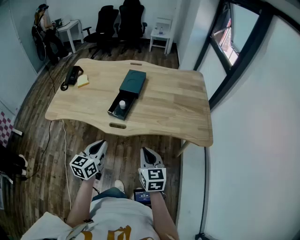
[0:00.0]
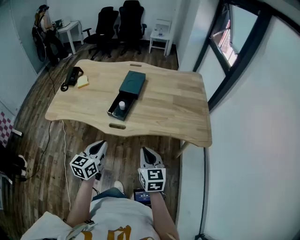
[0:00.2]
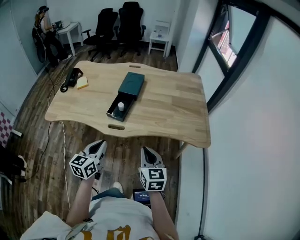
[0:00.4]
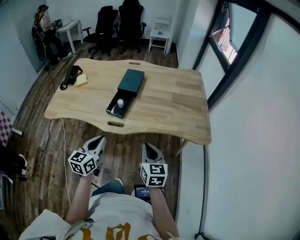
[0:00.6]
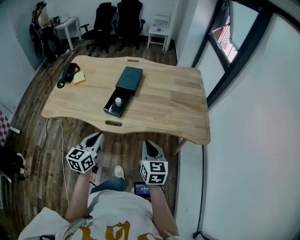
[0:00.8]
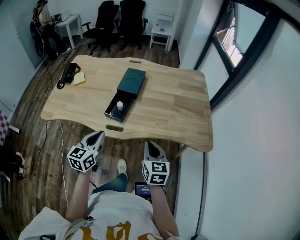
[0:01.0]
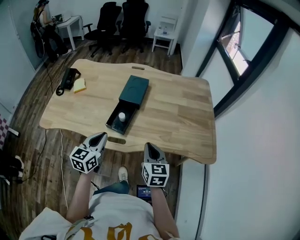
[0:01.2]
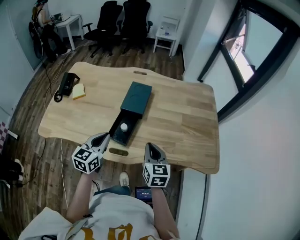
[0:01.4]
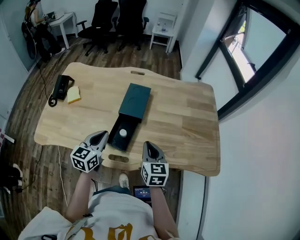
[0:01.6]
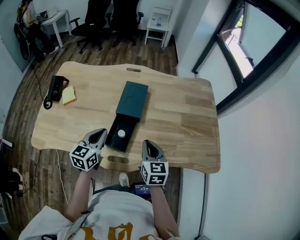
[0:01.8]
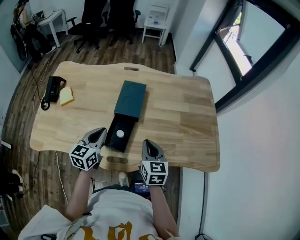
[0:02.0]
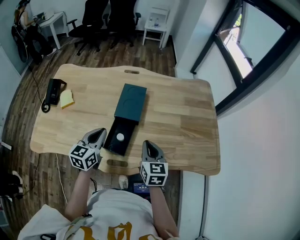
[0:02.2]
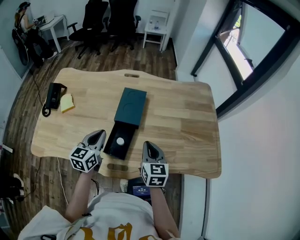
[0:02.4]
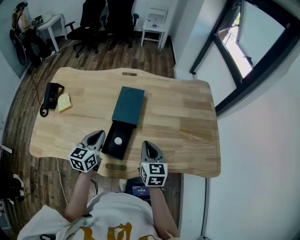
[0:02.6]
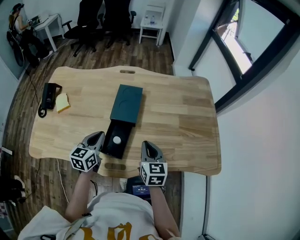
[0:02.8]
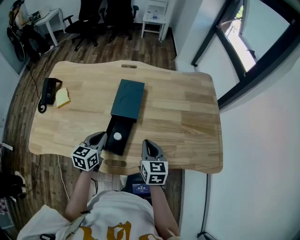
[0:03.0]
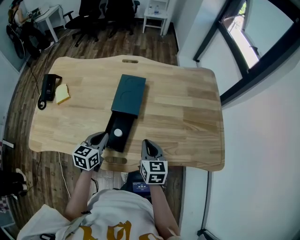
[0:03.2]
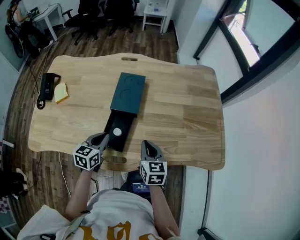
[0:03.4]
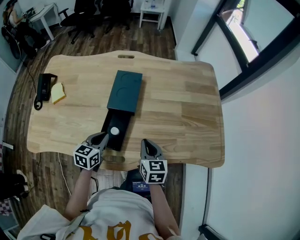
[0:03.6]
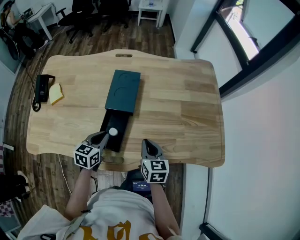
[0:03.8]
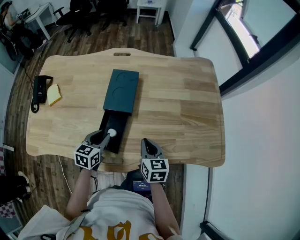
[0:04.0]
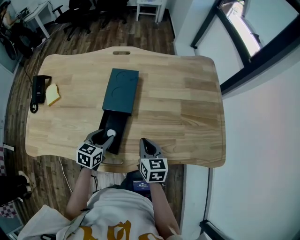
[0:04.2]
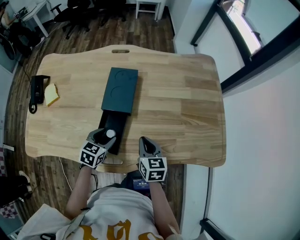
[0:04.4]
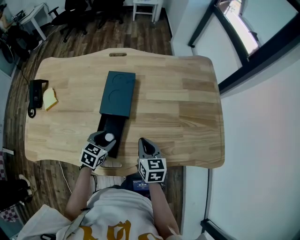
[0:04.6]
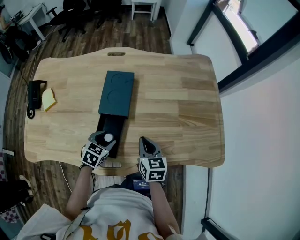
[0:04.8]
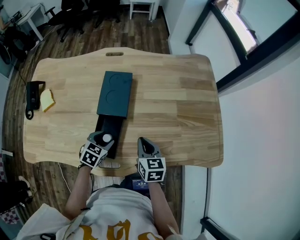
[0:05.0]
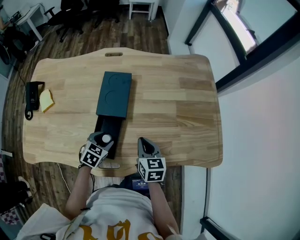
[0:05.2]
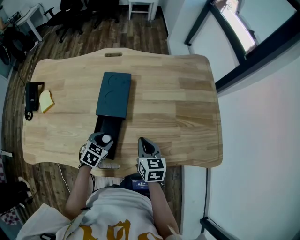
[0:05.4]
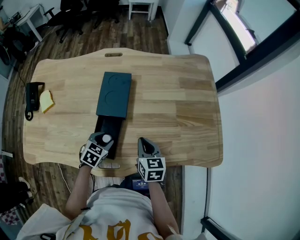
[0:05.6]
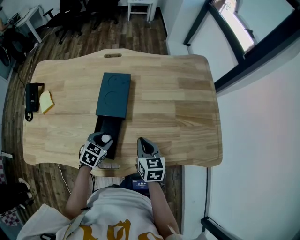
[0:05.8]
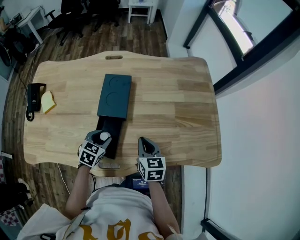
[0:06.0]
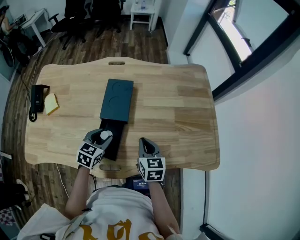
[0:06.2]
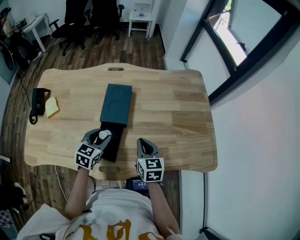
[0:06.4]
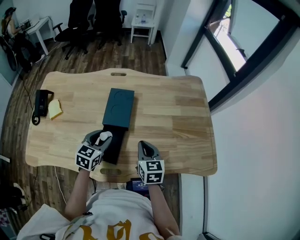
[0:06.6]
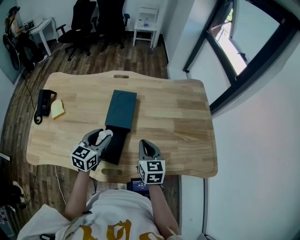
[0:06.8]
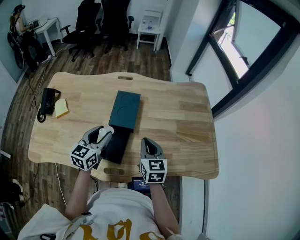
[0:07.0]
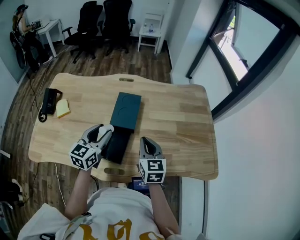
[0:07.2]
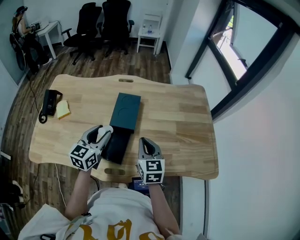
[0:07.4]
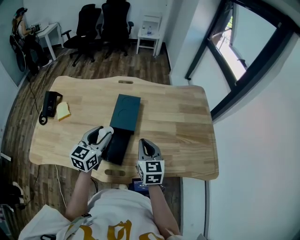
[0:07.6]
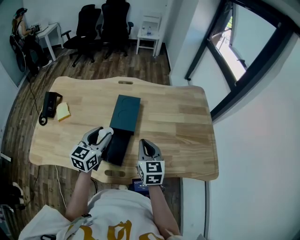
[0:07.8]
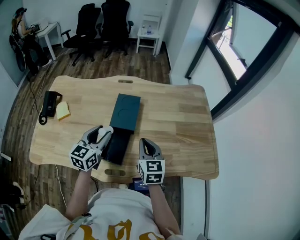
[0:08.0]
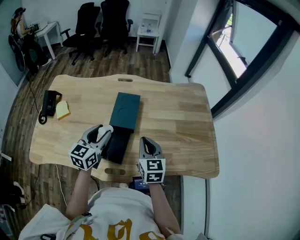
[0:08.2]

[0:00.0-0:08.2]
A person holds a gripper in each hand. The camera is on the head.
0:00.0 to 0:01.6: Both grippers travel together forward, approximately 25 cm.
0:01.6 to 0:03.2: Both grippers move downward, approximately 10 cm.
0:03.2 to 0:05.0: The right gripper ends up about 5 cm from where it was. Meanwhile the left gripper moves downward and to the right, about 10 cm, rotates some 30 degrees, and opens.
0:05.0 to 0:06.6: The left gripper is displaced upward by about 10 cm, and swivels roughly 20 degrees, while the right gripper heads upward, covering approximately 5 cm.
0:06.6 to 0:08.2: The left gripper shifts approximately 10 cm upward; the right gripper goes roughly 5 cm upward.

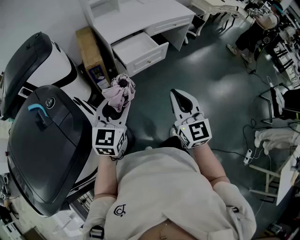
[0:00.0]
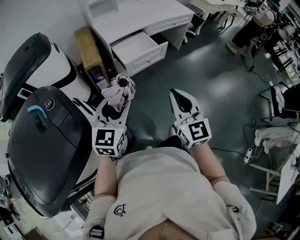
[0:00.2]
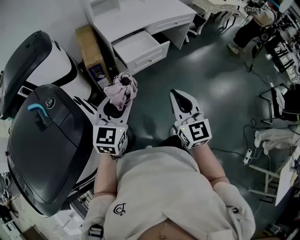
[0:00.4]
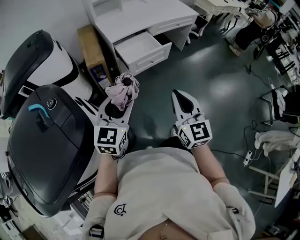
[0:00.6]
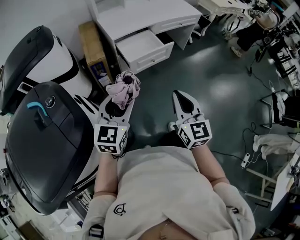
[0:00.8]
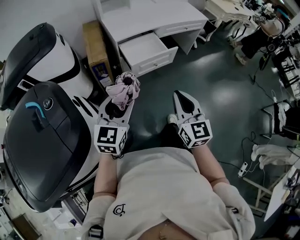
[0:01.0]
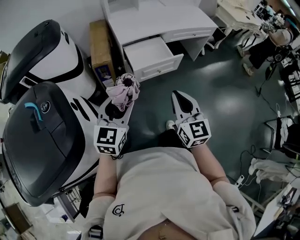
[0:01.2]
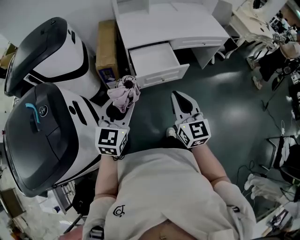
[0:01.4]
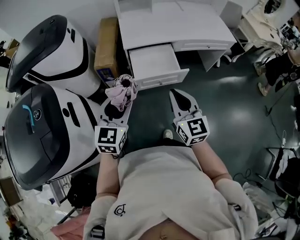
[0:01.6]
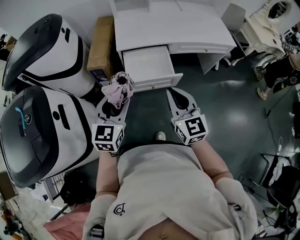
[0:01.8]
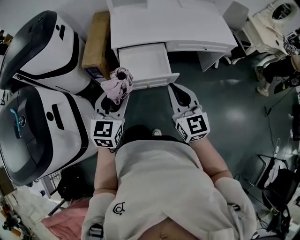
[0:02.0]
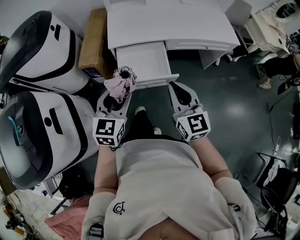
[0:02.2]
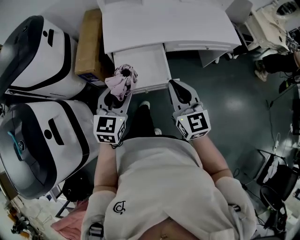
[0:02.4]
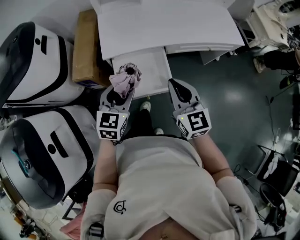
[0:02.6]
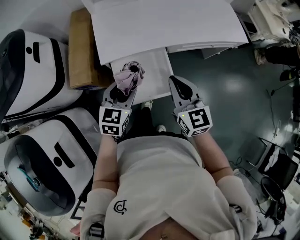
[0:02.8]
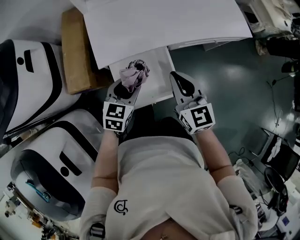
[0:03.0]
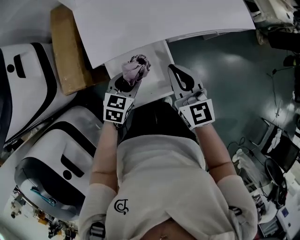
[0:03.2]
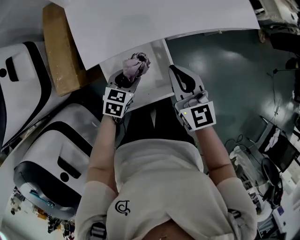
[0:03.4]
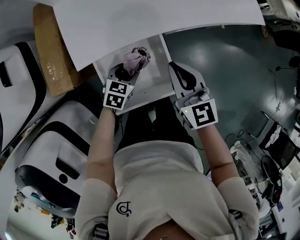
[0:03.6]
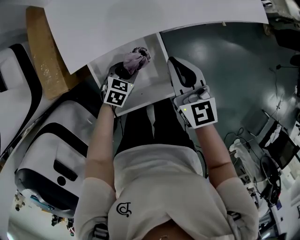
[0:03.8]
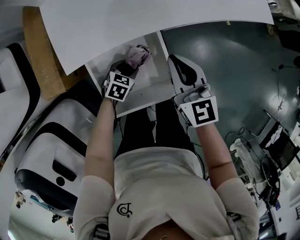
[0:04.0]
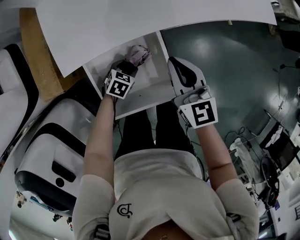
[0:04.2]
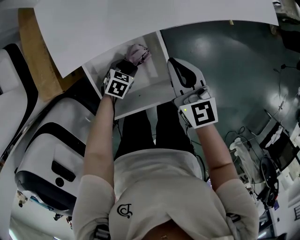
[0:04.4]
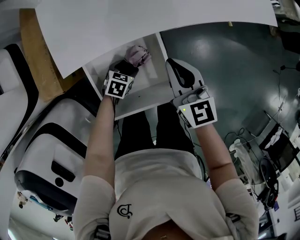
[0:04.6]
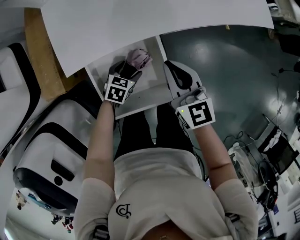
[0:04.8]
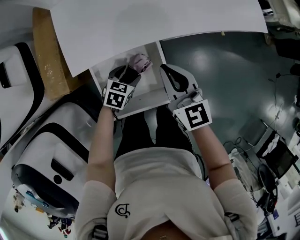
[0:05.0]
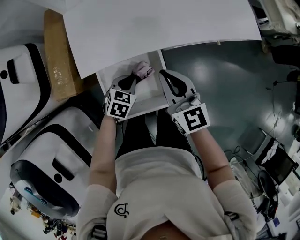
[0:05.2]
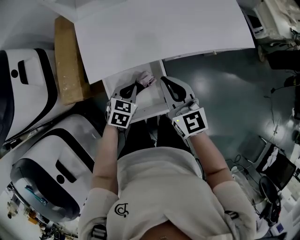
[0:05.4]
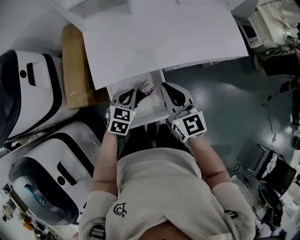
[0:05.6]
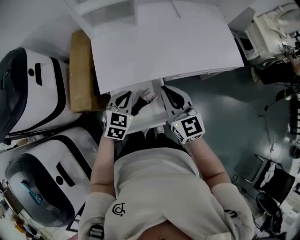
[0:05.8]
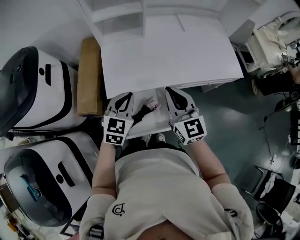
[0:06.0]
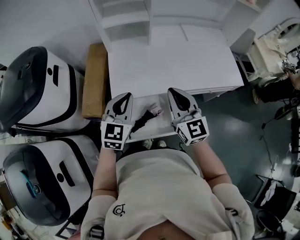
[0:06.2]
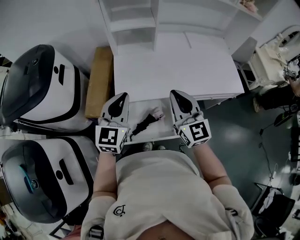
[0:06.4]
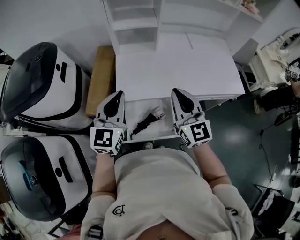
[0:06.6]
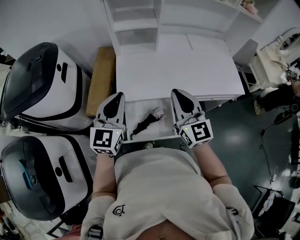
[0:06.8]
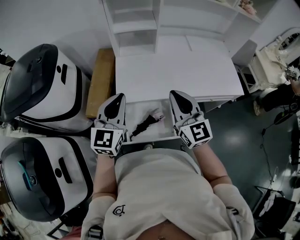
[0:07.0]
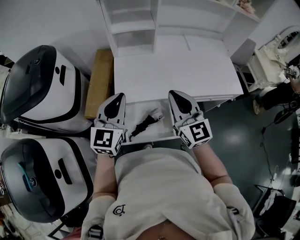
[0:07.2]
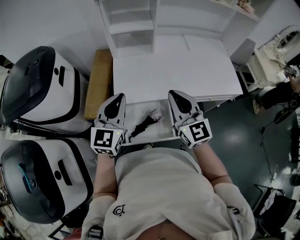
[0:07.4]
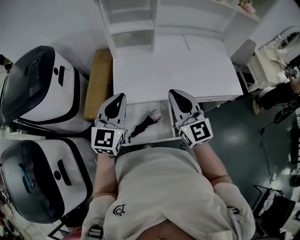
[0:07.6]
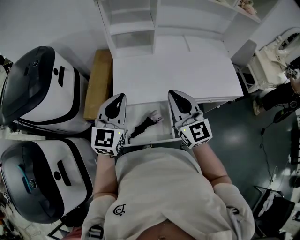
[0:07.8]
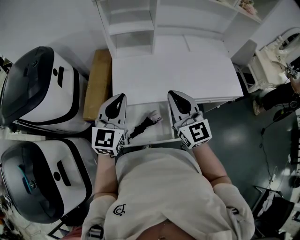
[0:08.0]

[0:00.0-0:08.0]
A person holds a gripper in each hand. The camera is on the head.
0:00.0 to 0:01.6: The two grippers go roughly 20 cm forward. The left gripper swivels about 20 degrees, while the right gripper turns by approximately 20 degrees.
0:01.6 to 0:03.2: The right gripper moves forward, some 30 cm. The left gripper goes roughly 35 cm forward and downward, and rotates roughly 30 degrees.
0:03.2 to 0:04.8: The left gripper moves downward, roughly 20 cm, and opens its fingers; the right gripper goes some 10 cm downward.
0:04.8 to 0:06.4: The left gripper heads upward, covering roughly 50 cm, tilts its fingers roughly 50 degrees upward, and closes up. The right gripper shifts roughly 25 cm upward, and rotates approximately 30 degrees.
0:06.4 to 0:08.0: The grippers stay close to where they were, moving slightly.

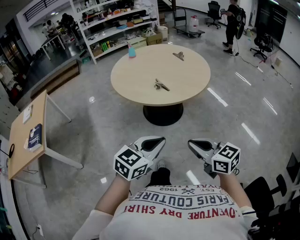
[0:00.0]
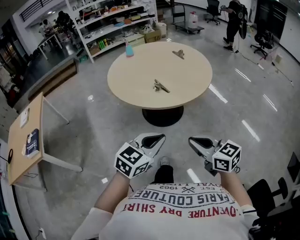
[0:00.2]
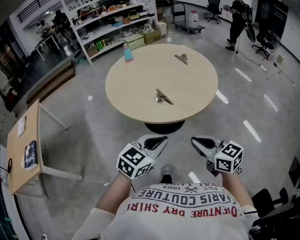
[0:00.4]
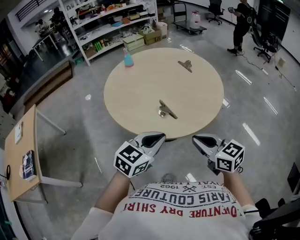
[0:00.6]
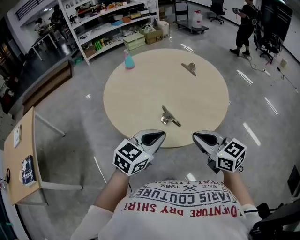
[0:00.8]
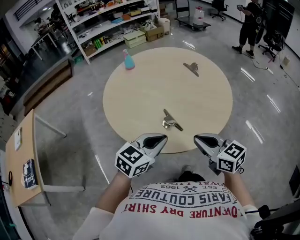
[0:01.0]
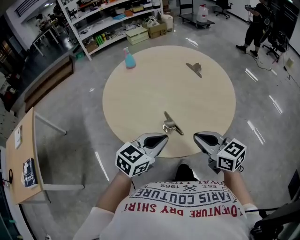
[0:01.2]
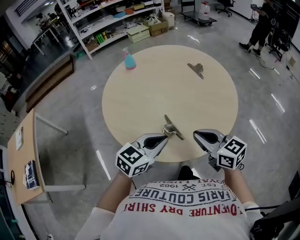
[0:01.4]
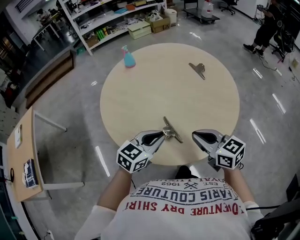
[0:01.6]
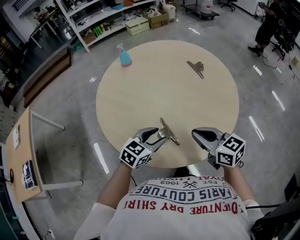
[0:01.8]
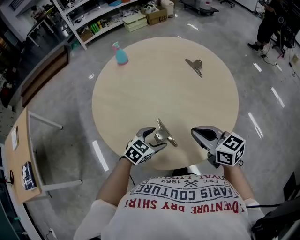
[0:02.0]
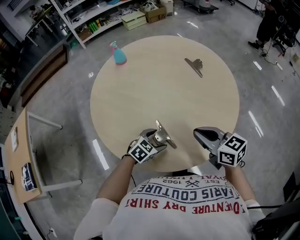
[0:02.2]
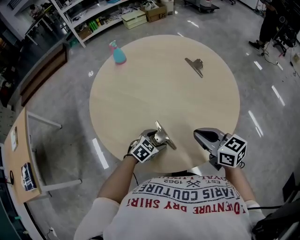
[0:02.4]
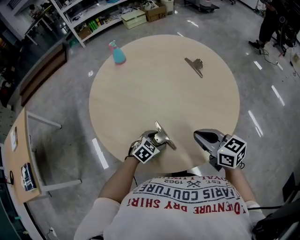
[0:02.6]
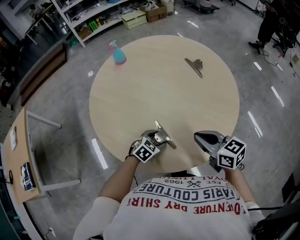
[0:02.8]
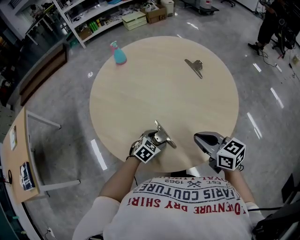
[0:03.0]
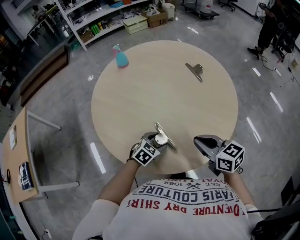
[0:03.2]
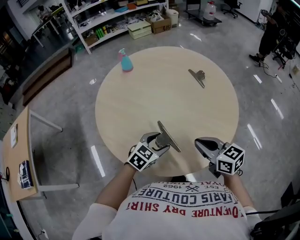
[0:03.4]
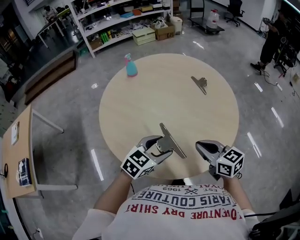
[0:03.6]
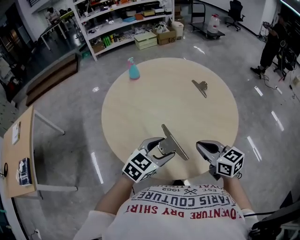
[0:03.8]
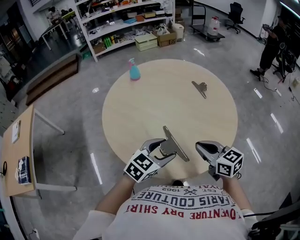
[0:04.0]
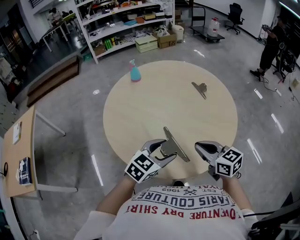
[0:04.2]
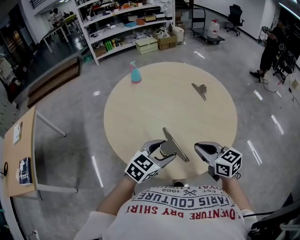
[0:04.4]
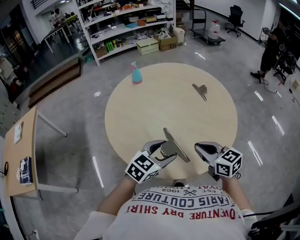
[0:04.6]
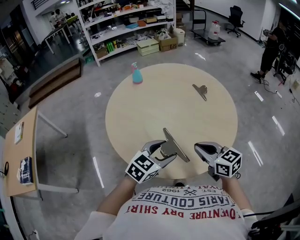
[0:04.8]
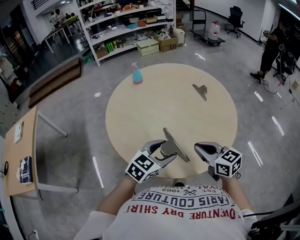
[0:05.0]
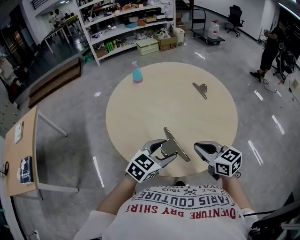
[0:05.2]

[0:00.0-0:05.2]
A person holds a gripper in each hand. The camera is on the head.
0:00.0 to 0:01.8: Both grippers are carried forward, about 50 cm. The left gripper opens.
0:01.8 to 0:03.4: The left gripper goes downward and returns, some 15 cm each way.
0:03.4 to 0:05.2: The left gripper goes approximately 15 cm upward and backward, while the right gripper moves roughly 5 cm.

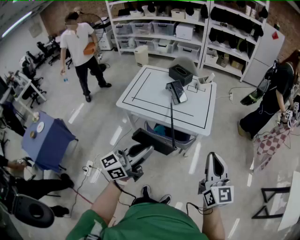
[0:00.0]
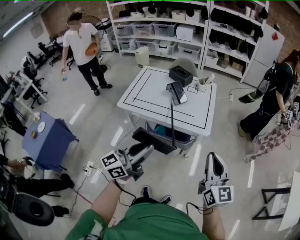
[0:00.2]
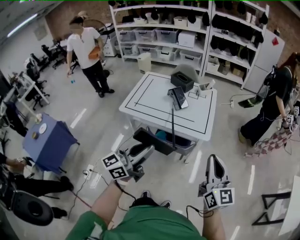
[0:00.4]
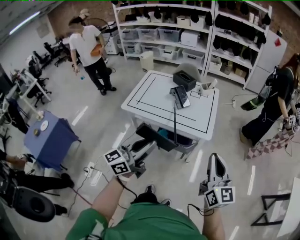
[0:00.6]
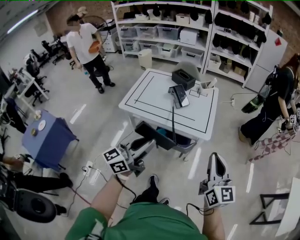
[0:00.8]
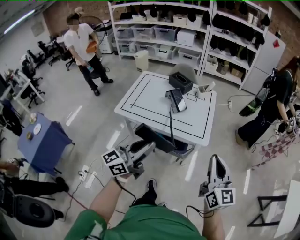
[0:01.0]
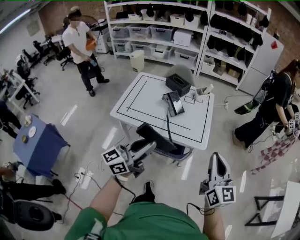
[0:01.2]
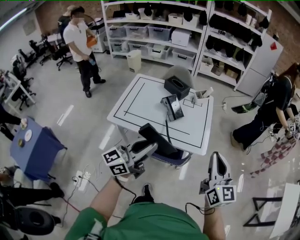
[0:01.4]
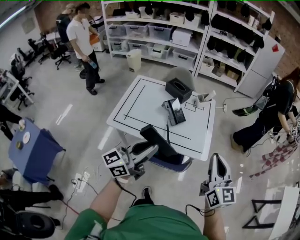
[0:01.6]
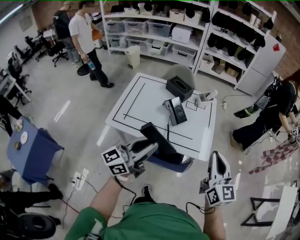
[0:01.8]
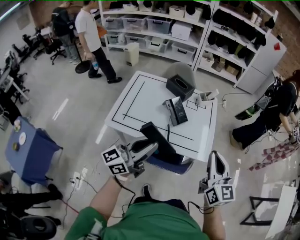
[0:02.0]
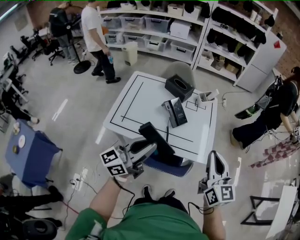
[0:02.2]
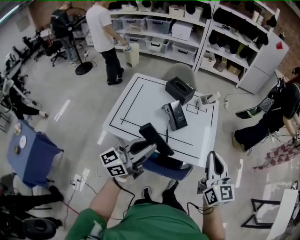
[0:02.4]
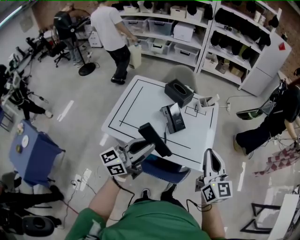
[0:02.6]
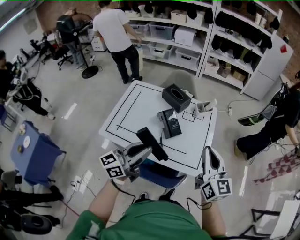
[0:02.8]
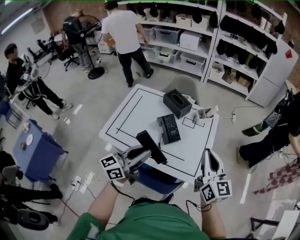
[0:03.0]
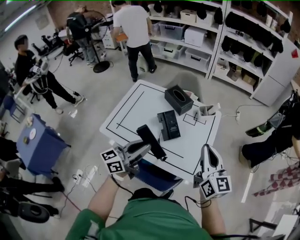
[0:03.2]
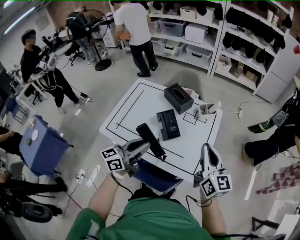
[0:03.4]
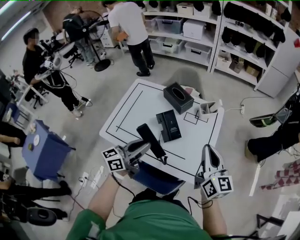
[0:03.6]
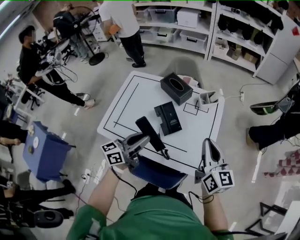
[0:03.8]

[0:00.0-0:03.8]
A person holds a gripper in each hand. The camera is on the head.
0:00.0 to 0:01.2: The grippers both shift forward by roughly 10 cm.
0:01.2 to 0:02.6: Both grippers travel together forward and to the left, about 20 cm.
0:02.6 to 0:03.8: The right gripper travels forward, to the right and downward by some 15 cm; the left gripper shifts about 15 cm forward and downward.
